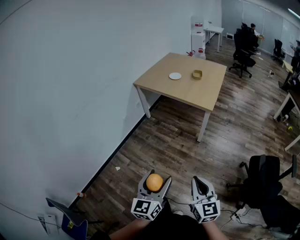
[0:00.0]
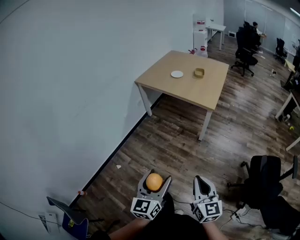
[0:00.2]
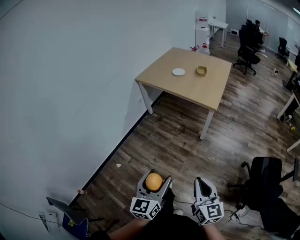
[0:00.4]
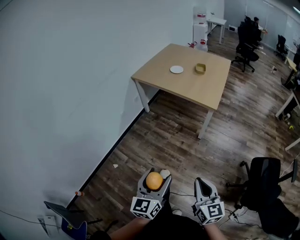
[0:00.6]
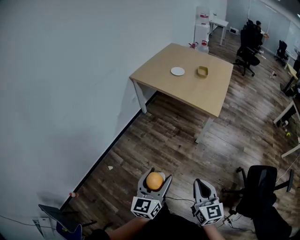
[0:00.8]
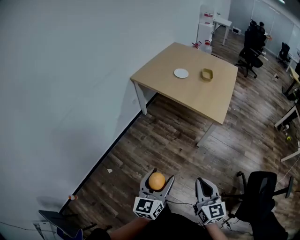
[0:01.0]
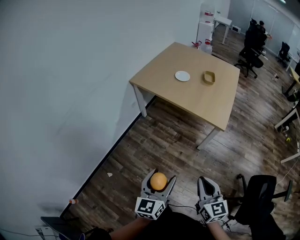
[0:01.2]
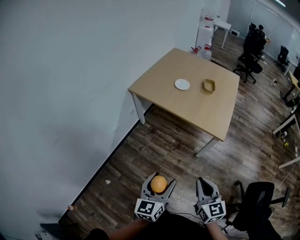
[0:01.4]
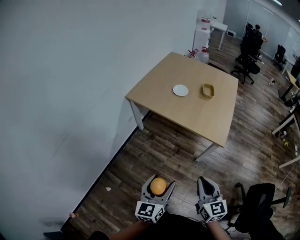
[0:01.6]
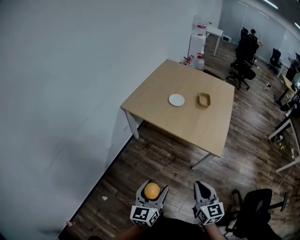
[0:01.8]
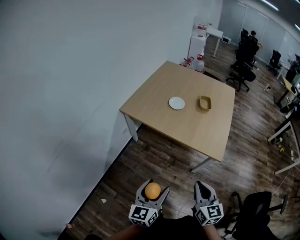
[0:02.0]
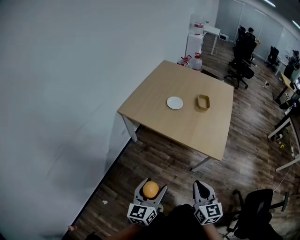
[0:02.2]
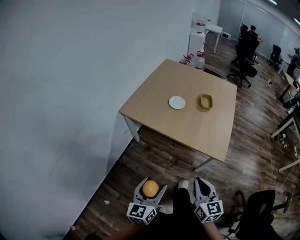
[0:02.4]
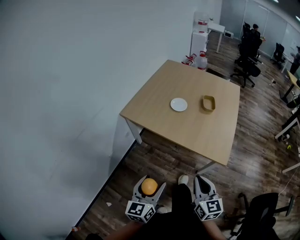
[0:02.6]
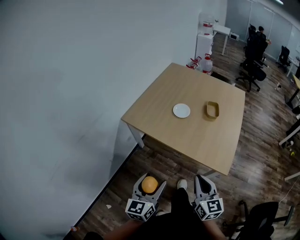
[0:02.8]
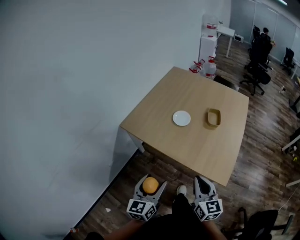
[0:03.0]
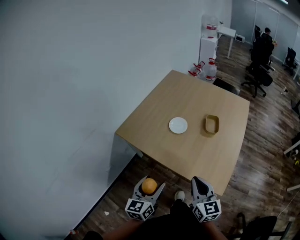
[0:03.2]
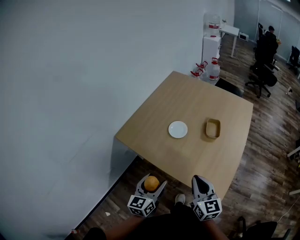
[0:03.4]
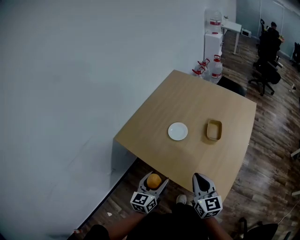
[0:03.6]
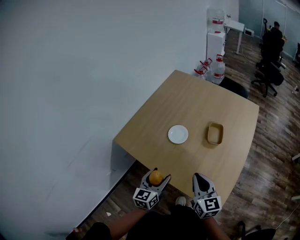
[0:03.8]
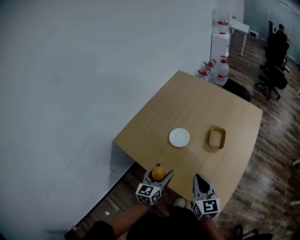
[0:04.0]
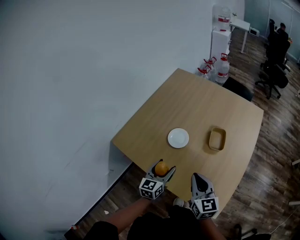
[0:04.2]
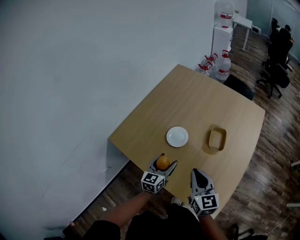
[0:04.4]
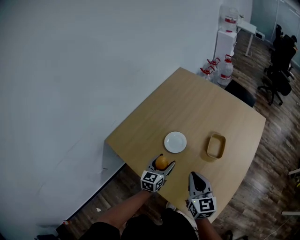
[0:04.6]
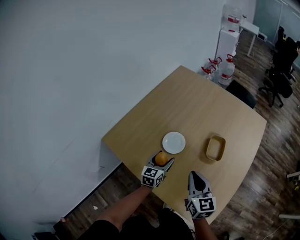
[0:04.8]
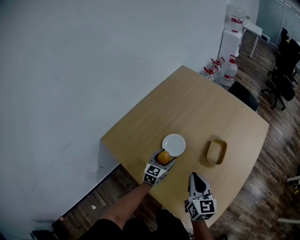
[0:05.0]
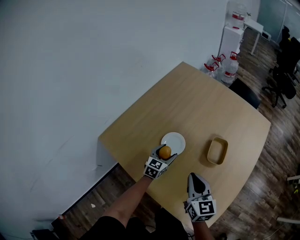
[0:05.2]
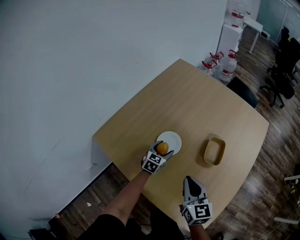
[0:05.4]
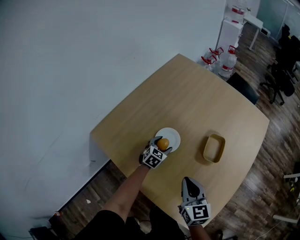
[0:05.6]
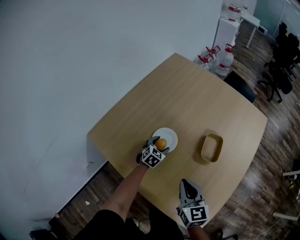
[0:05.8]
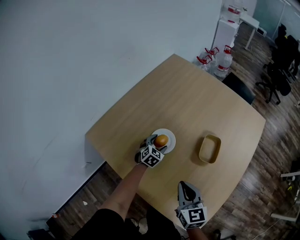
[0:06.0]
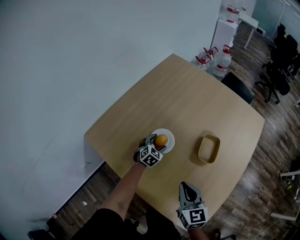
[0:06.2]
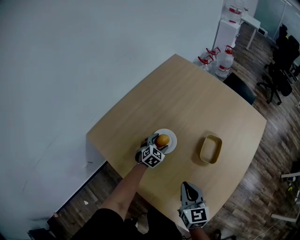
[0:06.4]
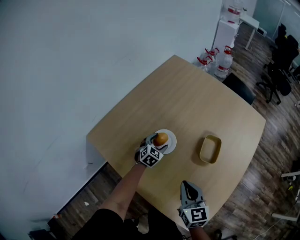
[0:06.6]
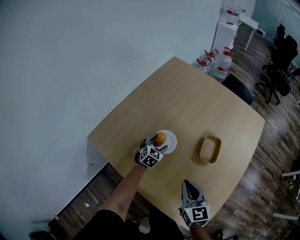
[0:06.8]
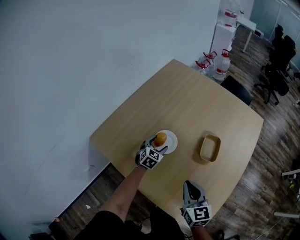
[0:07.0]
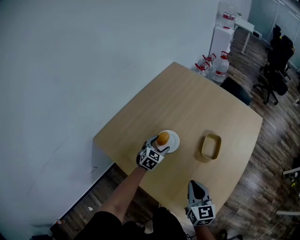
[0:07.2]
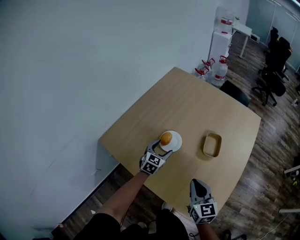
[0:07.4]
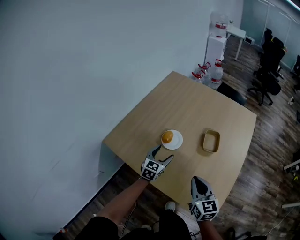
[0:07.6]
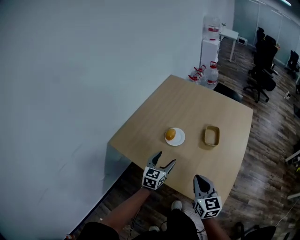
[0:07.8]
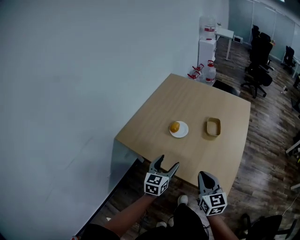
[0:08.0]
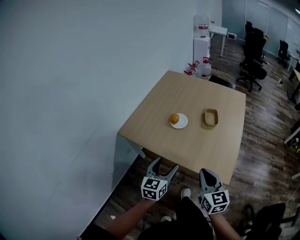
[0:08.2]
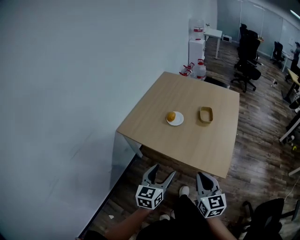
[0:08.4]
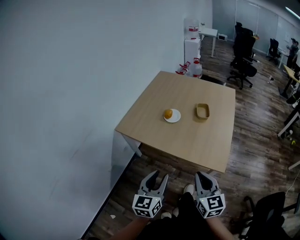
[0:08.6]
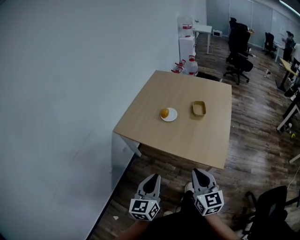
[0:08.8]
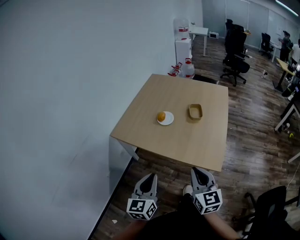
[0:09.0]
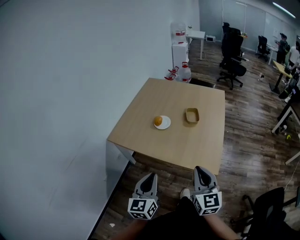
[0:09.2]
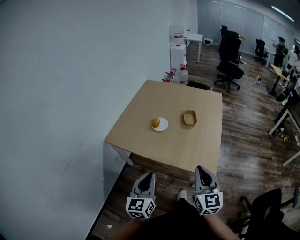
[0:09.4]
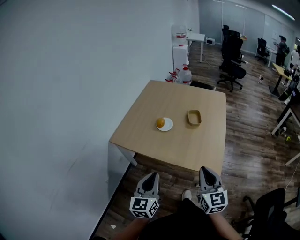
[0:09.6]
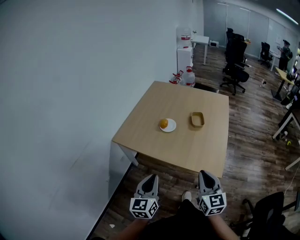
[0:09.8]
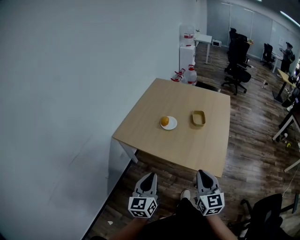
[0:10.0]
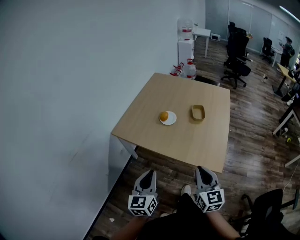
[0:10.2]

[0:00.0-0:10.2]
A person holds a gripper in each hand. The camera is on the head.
0:00.0 to 0:01.4: The two grippers go roughly 35 cm forward.
0:01.4 to 0:03.0: The two grippers go approximately 30 cm forward.
0:03.0 to 0:04.4: The two grippers go about 30 cm forward.
0:04.4 to 0:05.8: The right gripper heads downward, covering roughly 10 cm. The left gripper heads downward and forward, covering roughly 25 cm, and turns by some 40 degrees.
0:05.8 to 0:07.2: The left gripper travels upward by about 10 cm.
0:07.2 to 0:08.8: The right gripper heads backward, covering roughly 35 cm; the left gripper shifts about 60 cm backward and upward, rotates approximately 40 degrees, and closes up.
0:08.8 to 0:10.2: The left gripper moves approximately 5 cm.

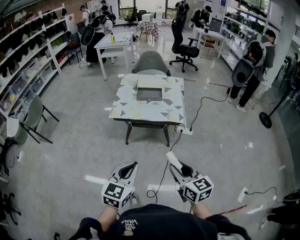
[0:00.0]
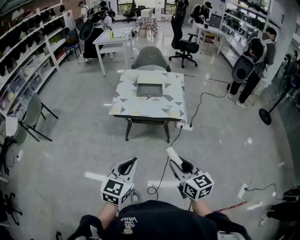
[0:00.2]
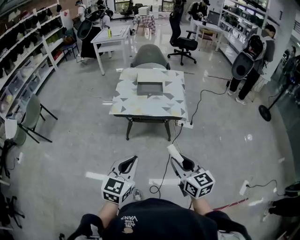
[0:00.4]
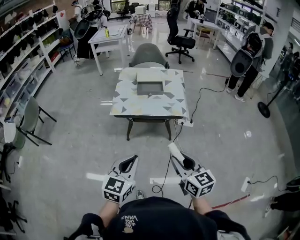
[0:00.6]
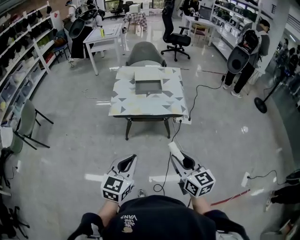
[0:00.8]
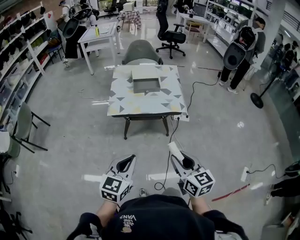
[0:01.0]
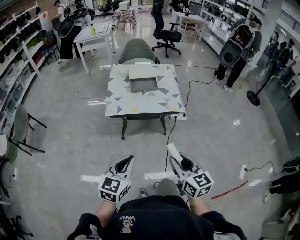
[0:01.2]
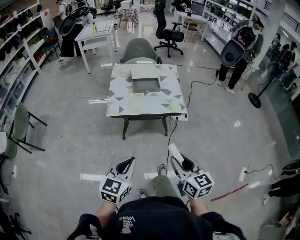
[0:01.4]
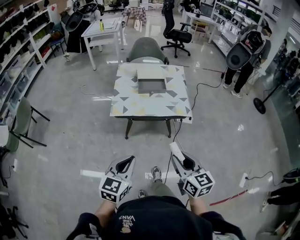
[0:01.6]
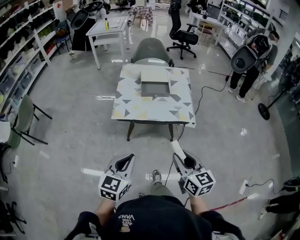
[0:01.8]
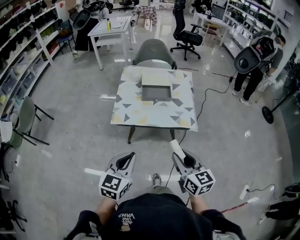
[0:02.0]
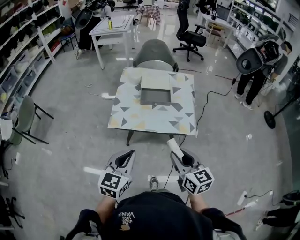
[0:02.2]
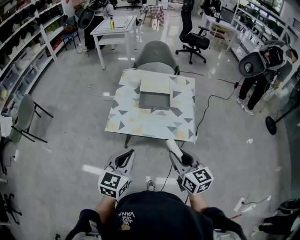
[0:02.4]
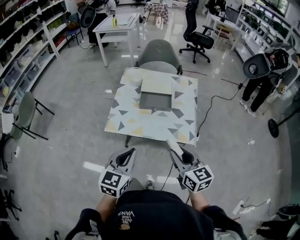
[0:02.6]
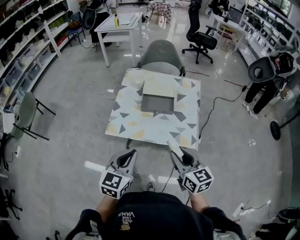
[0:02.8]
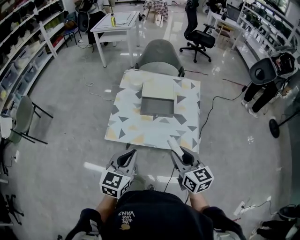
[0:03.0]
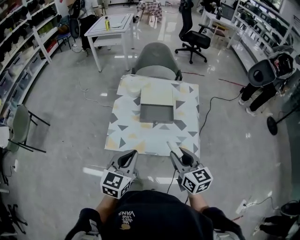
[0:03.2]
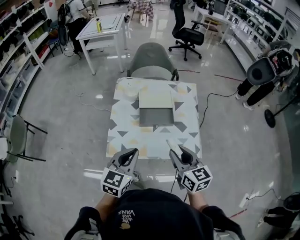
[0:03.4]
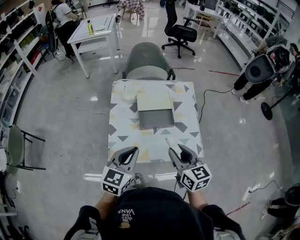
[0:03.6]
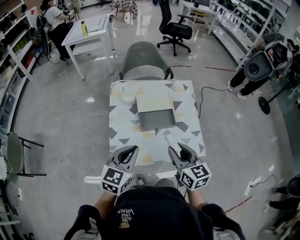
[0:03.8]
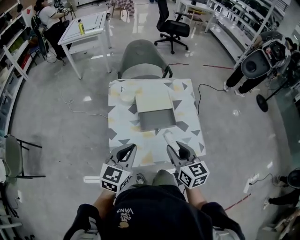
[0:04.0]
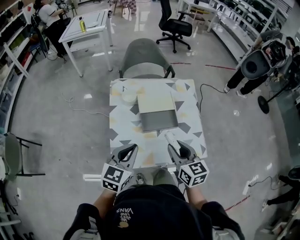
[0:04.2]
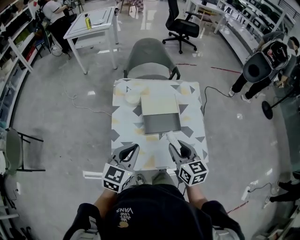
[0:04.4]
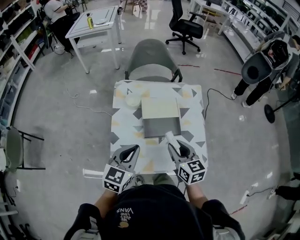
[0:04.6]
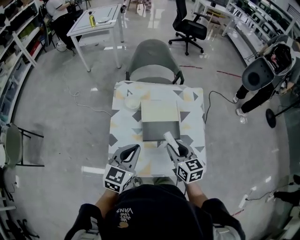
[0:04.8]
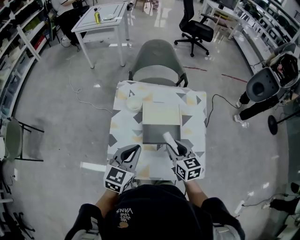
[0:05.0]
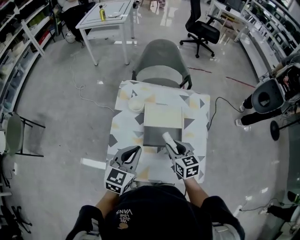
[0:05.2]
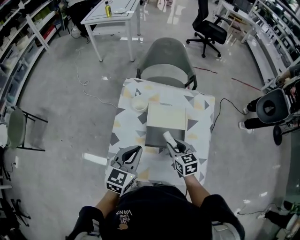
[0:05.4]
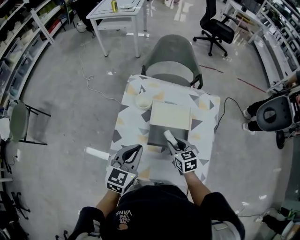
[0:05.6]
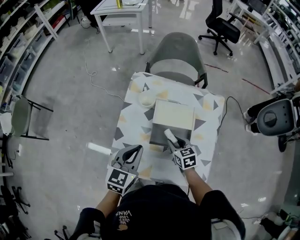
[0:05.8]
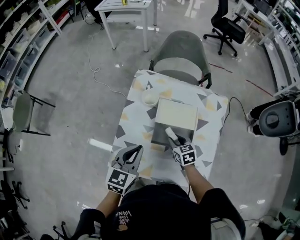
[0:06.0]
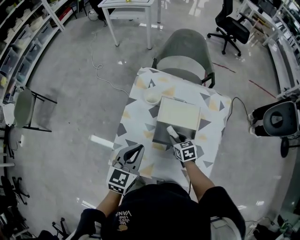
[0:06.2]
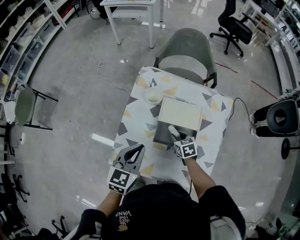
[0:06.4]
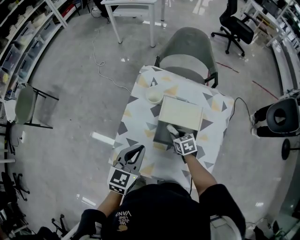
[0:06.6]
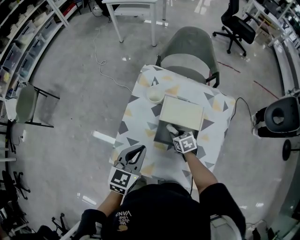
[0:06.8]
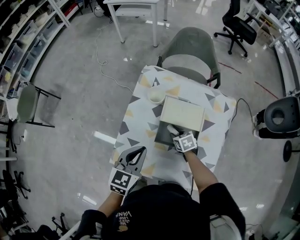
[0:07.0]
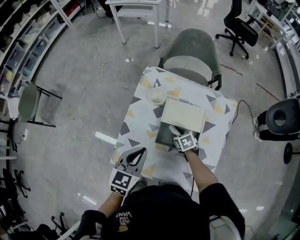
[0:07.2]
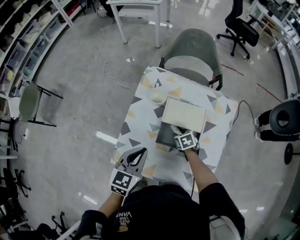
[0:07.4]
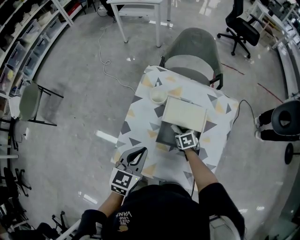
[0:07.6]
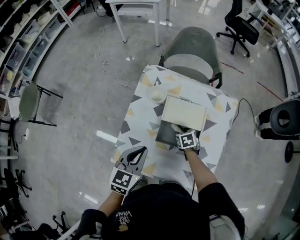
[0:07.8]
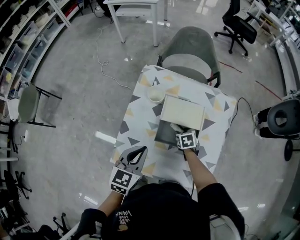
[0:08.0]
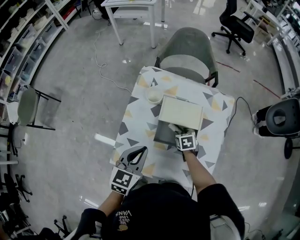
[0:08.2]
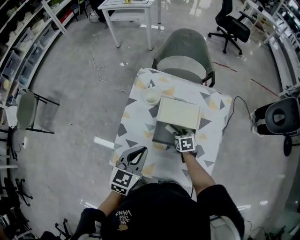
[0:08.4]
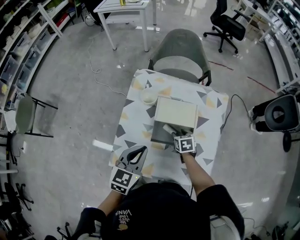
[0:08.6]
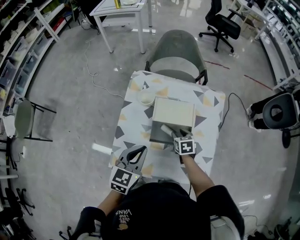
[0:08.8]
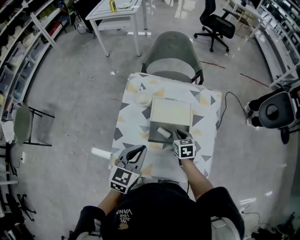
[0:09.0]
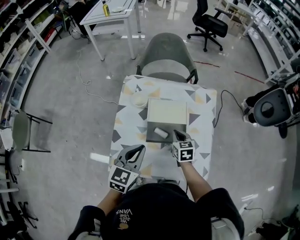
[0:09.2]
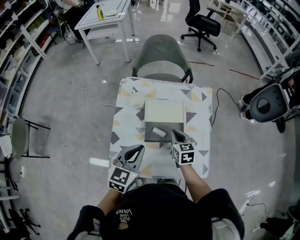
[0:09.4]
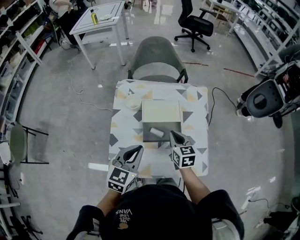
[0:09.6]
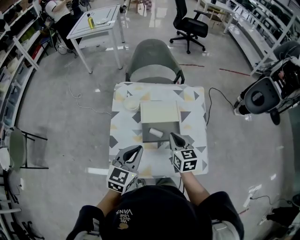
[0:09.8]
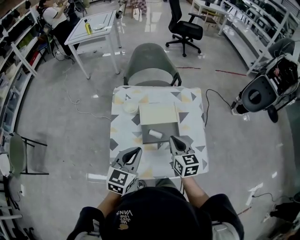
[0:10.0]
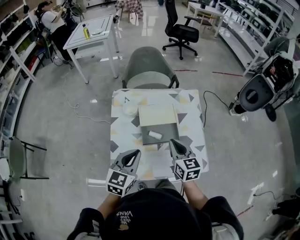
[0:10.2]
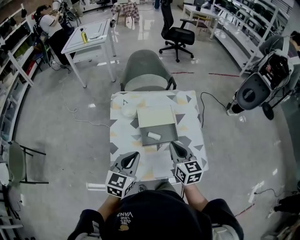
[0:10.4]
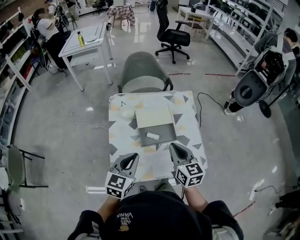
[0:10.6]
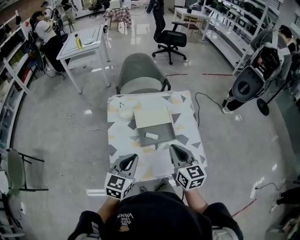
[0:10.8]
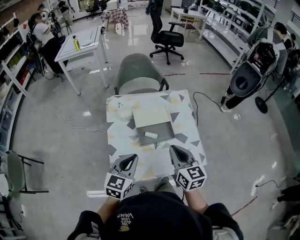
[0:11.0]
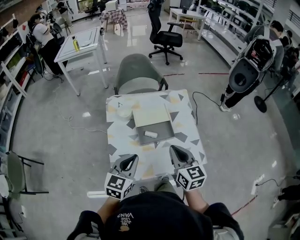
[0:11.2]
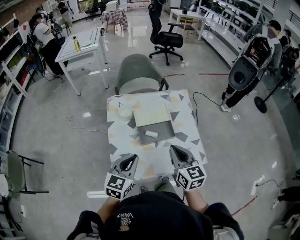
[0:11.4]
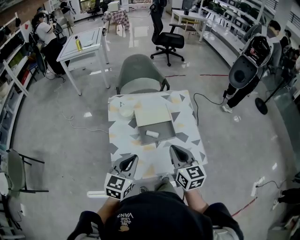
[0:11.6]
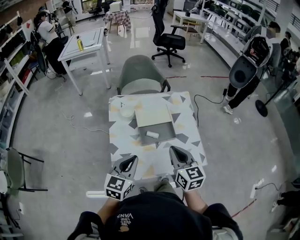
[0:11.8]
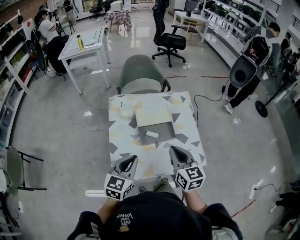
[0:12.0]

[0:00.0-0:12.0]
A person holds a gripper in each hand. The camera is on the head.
0:00.0 to 0:01.6: Both grippers move to the left and forward, approximately 15 cm.
0:01.6 to 0:03.0: Both grippers travel together forward, some 30 cm.
0:03.0 to 0:04.4: The grippers both shift forward and to the left by about 25 cm.
0:04.4 to 0:06.0: The right gripper moves downward and forward, some 25 cm, and rotates about 30 degrees. Meanwhile the left gripper heads forward, covering some 10 cm.
0:06.0 to 0:07.6: The right gripper goes roughly 10 cm downward, and changes its angle by some 20 degrees.
0:07.6 to 0:09.0: The right gripper is displaced upward by approximately 10 cm, changes its angle by approximately 30 degrees, and closes its fingers.
0:09.0 to 0:10.4: The right gripper travels upward and backward by approximately 25 cm, and turns by roughly 30 degrees. Meanwhile the left gripper travels backward by roughly 5 cm.
0:10.4 to 0:12.0: The two grippers go roughly 5 cm backward.

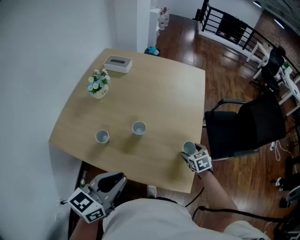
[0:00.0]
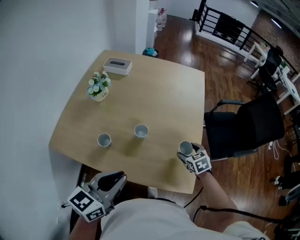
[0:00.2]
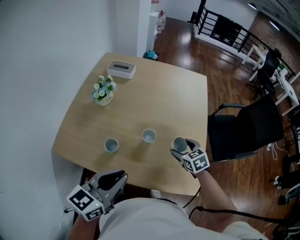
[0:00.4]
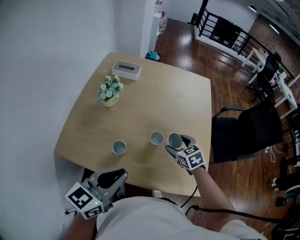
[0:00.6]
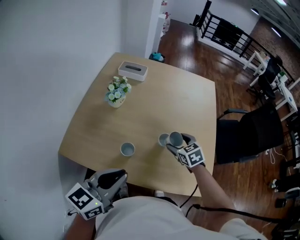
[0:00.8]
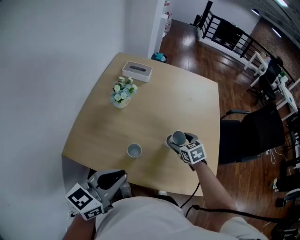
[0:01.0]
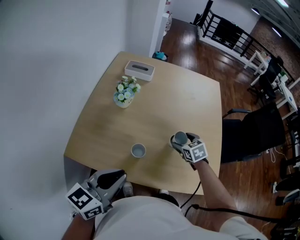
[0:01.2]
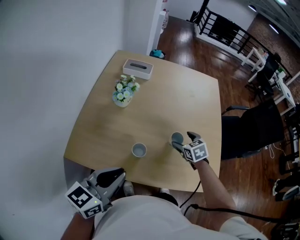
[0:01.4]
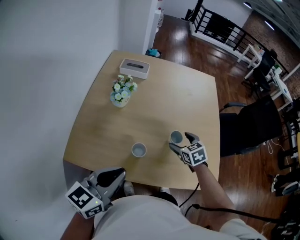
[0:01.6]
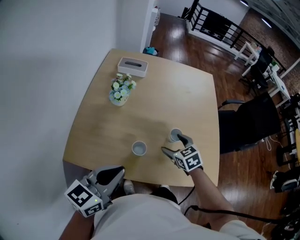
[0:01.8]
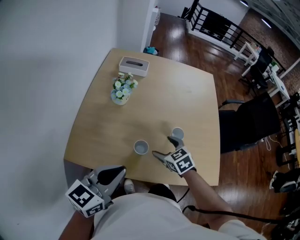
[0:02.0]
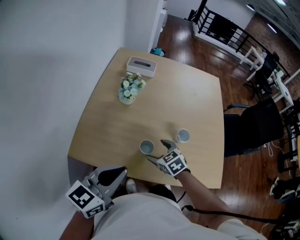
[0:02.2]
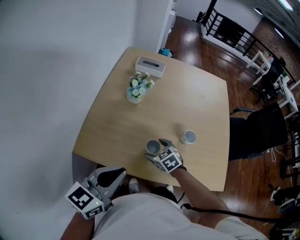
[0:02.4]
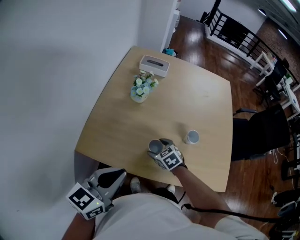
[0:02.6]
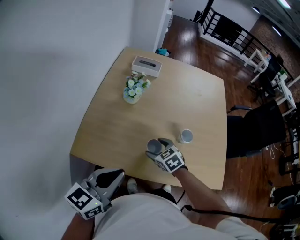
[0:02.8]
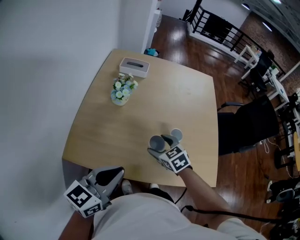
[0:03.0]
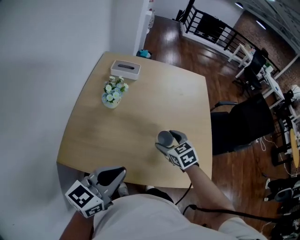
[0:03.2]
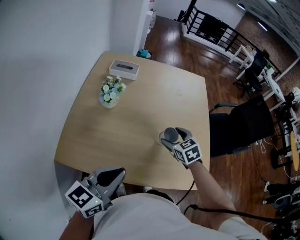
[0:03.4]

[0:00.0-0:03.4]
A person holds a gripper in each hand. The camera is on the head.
0:00.0 to 0:01.6: The two grippers go some 25 cm to the left.
0:01.6 to 0:03.4: The right gripper moves approximately 20 cm to the left and comes back.
